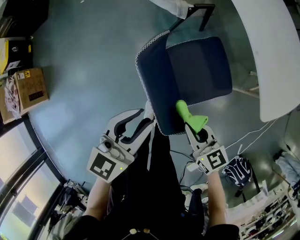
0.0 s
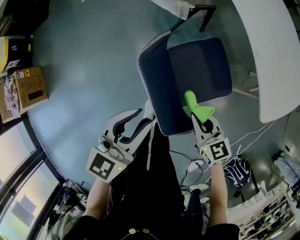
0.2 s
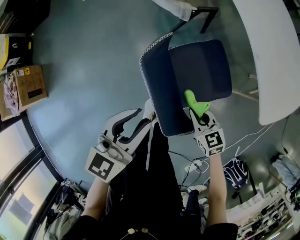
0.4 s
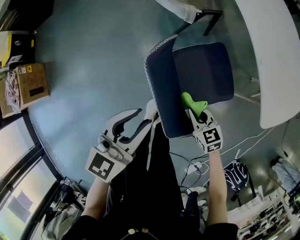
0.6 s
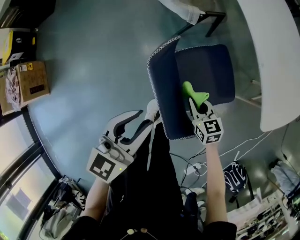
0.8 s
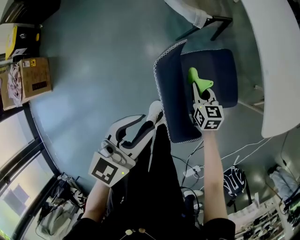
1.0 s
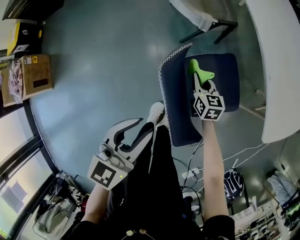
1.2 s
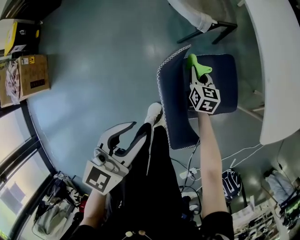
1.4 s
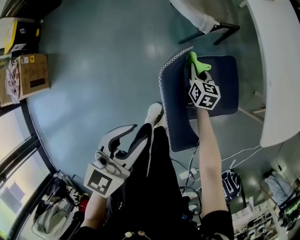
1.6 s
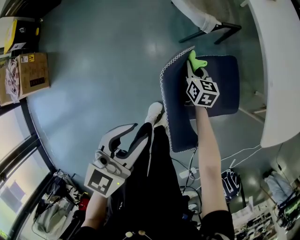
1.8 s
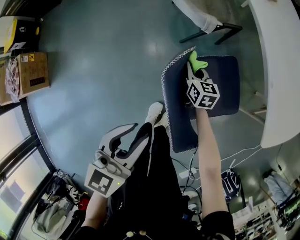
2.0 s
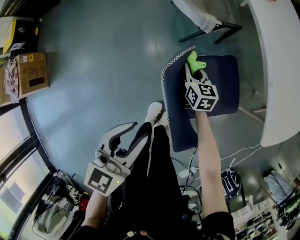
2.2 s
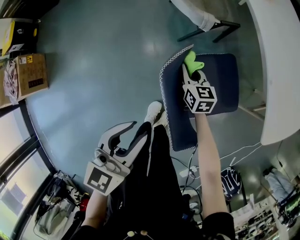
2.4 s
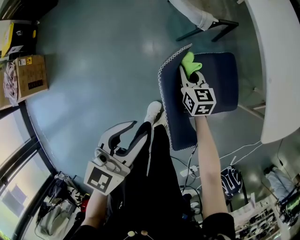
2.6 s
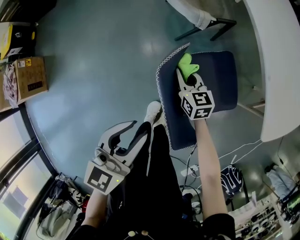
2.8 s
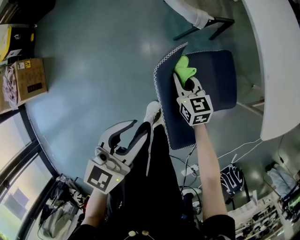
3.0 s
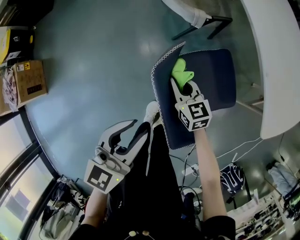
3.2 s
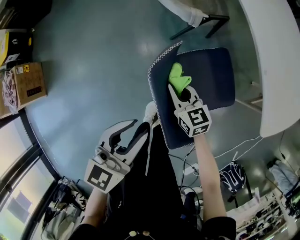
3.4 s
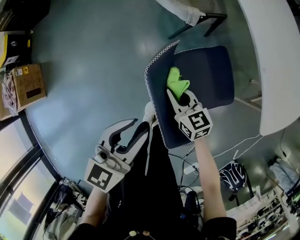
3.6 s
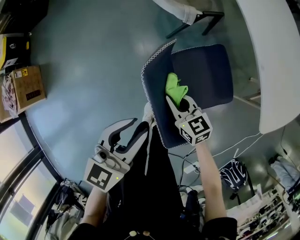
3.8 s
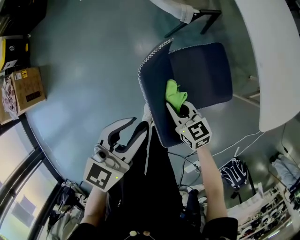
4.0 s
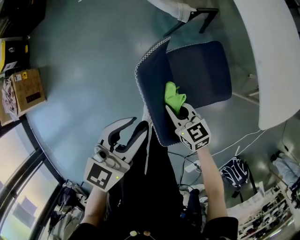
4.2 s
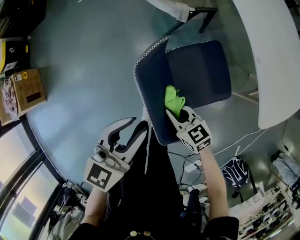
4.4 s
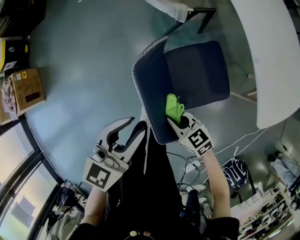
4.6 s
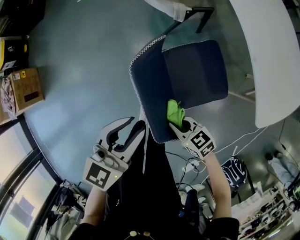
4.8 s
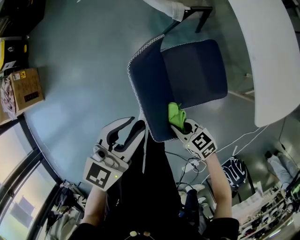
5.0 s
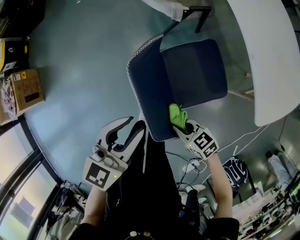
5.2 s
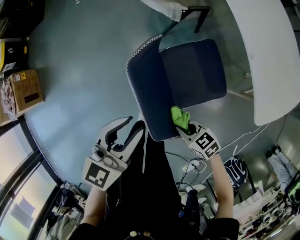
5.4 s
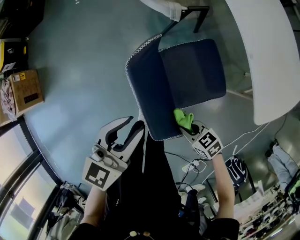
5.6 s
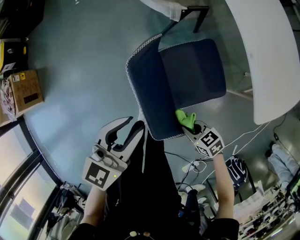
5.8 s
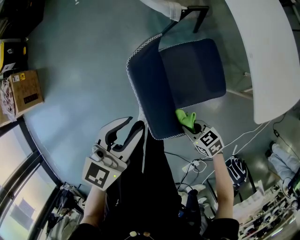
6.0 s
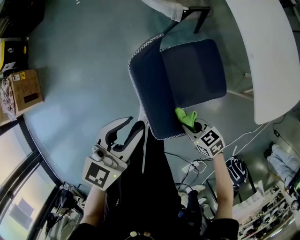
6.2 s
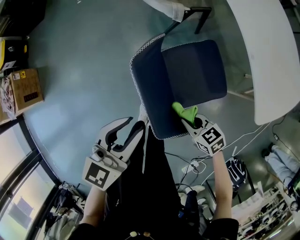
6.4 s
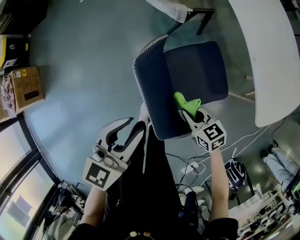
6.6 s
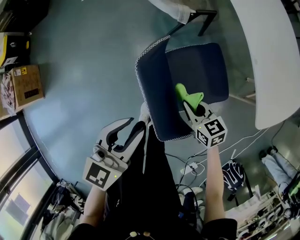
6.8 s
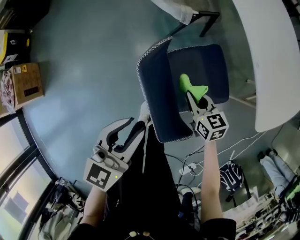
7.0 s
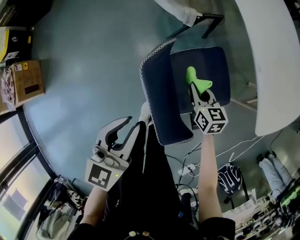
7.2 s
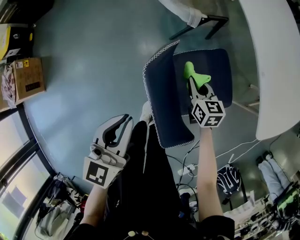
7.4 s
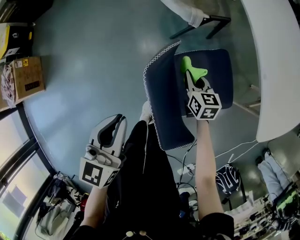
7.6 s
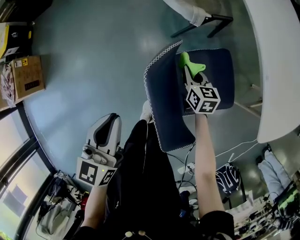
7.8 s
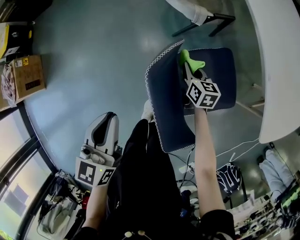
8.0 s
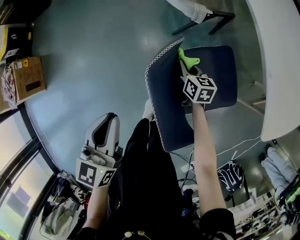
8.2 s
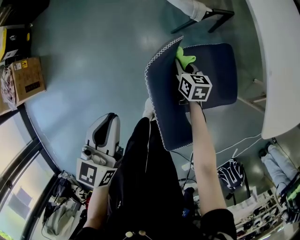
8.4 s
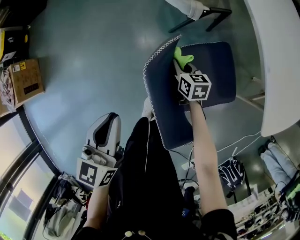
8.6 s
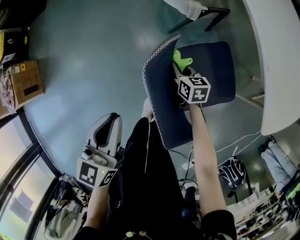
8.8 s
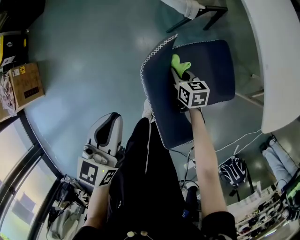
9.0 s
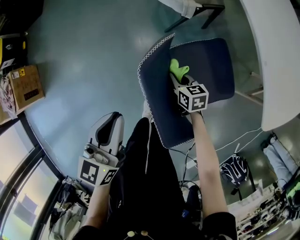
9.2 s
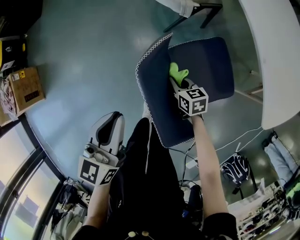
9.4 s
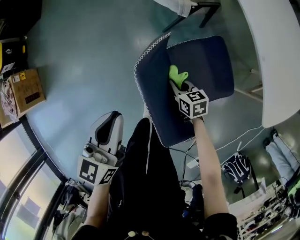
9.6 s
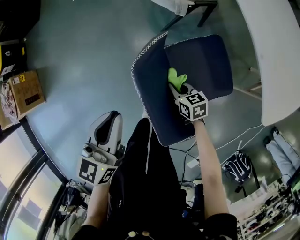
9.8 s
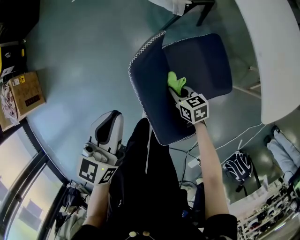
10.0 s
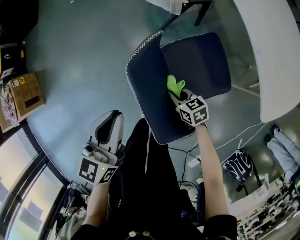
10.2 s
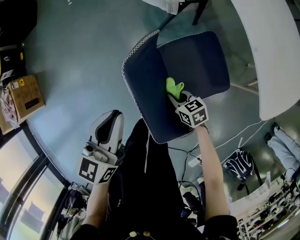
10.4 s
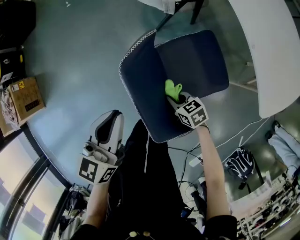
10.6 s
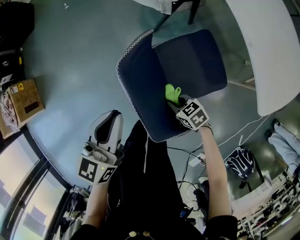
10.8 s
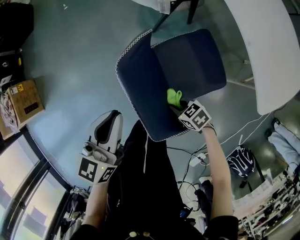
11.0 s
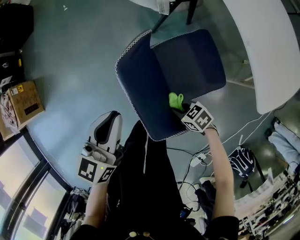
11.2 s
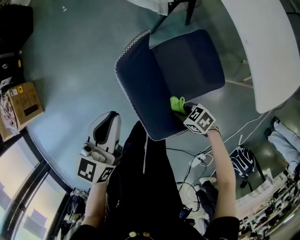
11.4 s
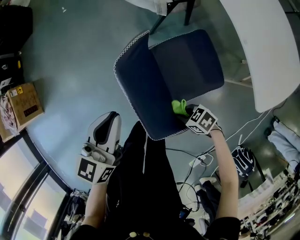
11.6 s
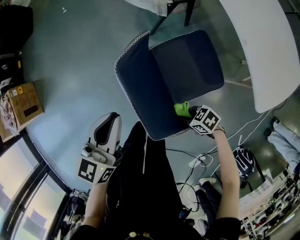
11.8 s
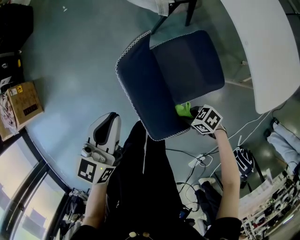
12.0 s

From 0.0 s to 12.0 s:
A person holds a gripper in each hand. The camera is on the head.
From 0.0 s to 1.6 s: The left gripper shifts approximately 5 cm to the left; the right gripper moves forward and downward, approximately 30 cm, and changes its angle by roughly 20 degrees.
From 1.6 s to 3.0 s: The right gripper shifts some 10 cm backward, to the left and upward.
From 3.0 s to 4.4 s: The right gripper heads backward, covering about 15 cm.
From 4.4 s to 6.0 s: The right gripper travels backward and to the right by roughly 15 cm, and rotates some 20 degrees.
From 6.0 s to 7.6 s: The left gripper travels to the left by some 5 cm, changes its angle by roughly 20 degrees, and closes. The right gripper travels forward by some 25 cm, and changes its angle by some 40 degrees.
From 7.6 s to 9.0 s: The right gripper travels to the left and downward by roughly 10 cm.
From 9.0 s to 10.4 s: The right gripper goes approximately 15 cm backward.
From 10.4 s to 12.0 s: The right gripper ends up approximately 15 cm from where it was, and turns by some 30 degrees.

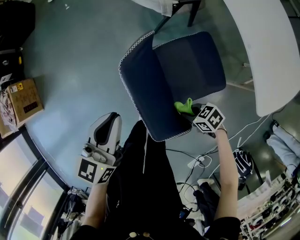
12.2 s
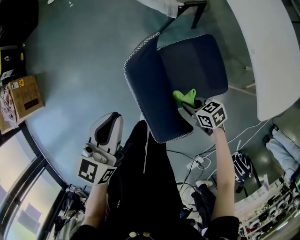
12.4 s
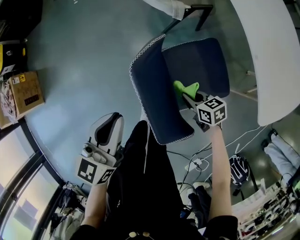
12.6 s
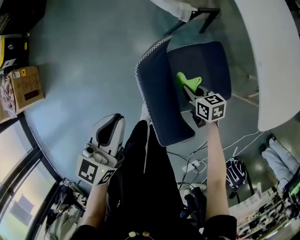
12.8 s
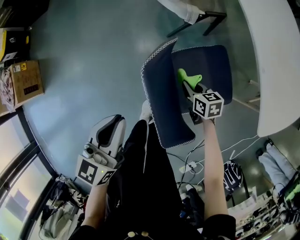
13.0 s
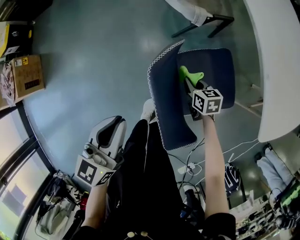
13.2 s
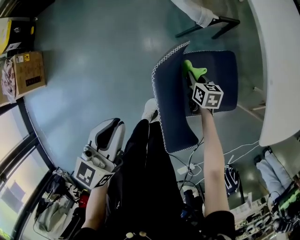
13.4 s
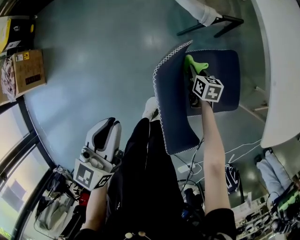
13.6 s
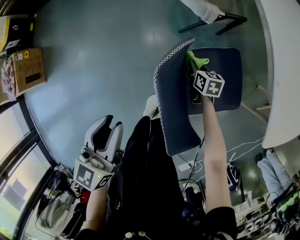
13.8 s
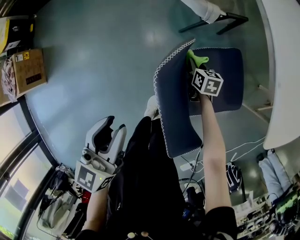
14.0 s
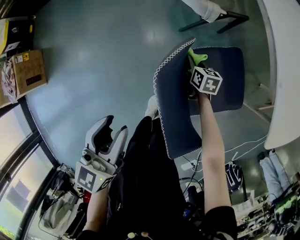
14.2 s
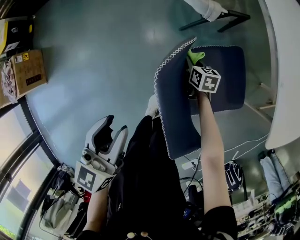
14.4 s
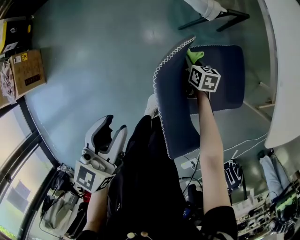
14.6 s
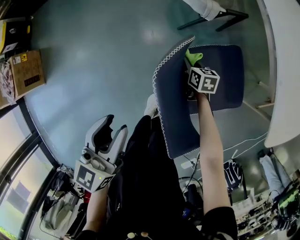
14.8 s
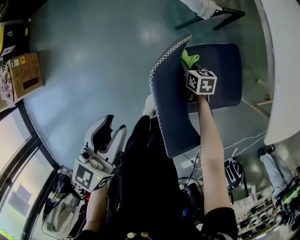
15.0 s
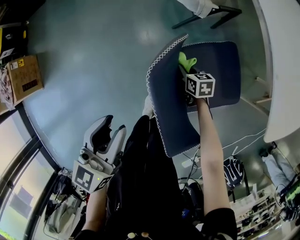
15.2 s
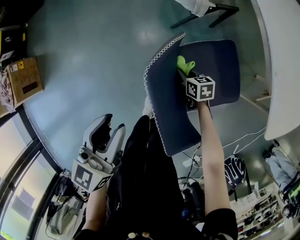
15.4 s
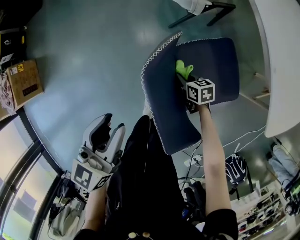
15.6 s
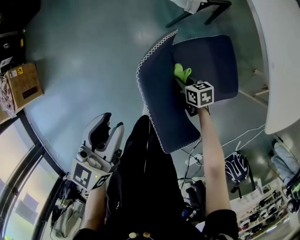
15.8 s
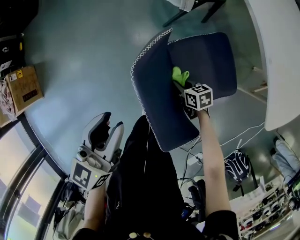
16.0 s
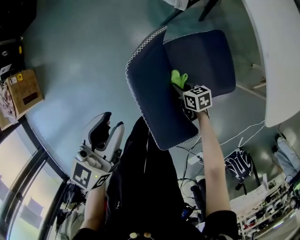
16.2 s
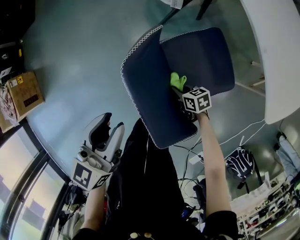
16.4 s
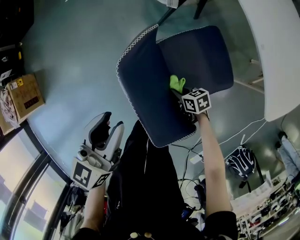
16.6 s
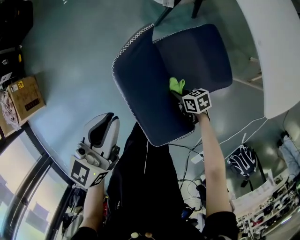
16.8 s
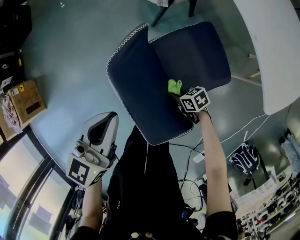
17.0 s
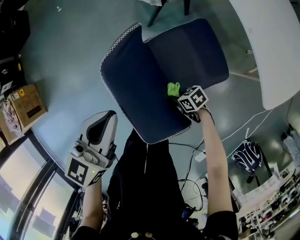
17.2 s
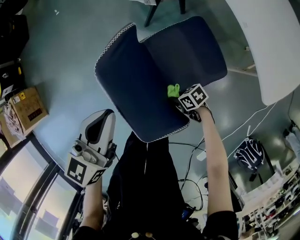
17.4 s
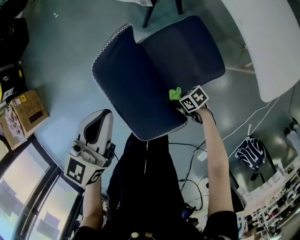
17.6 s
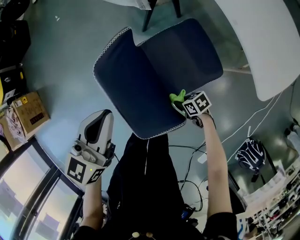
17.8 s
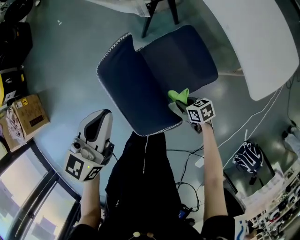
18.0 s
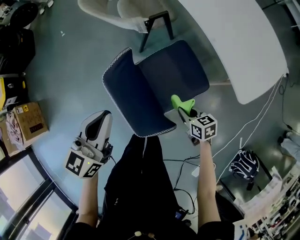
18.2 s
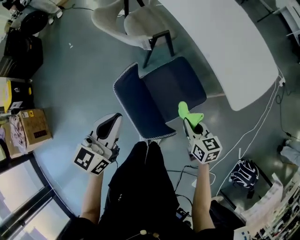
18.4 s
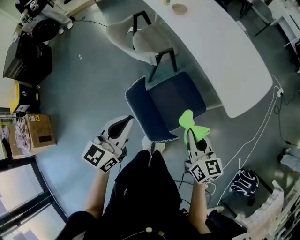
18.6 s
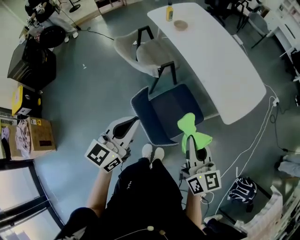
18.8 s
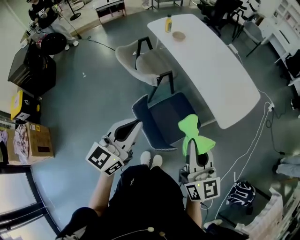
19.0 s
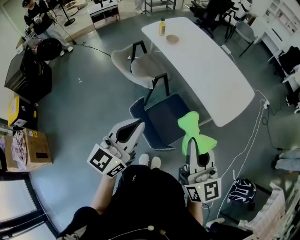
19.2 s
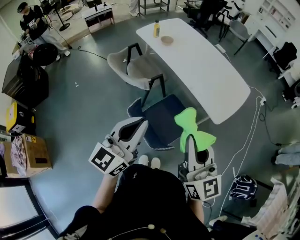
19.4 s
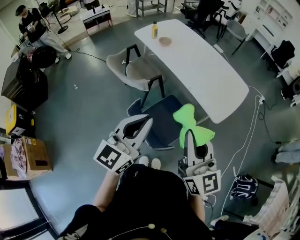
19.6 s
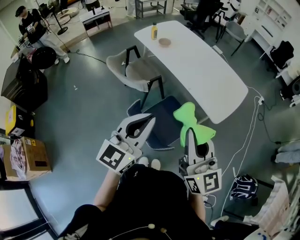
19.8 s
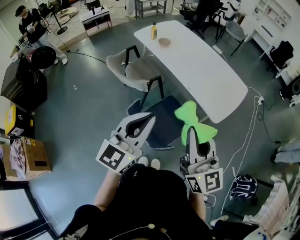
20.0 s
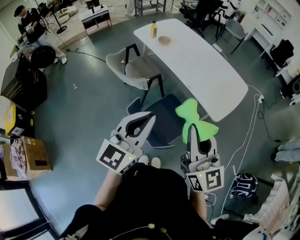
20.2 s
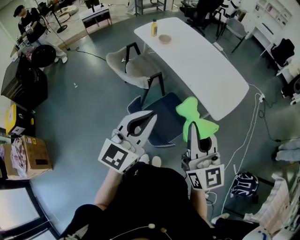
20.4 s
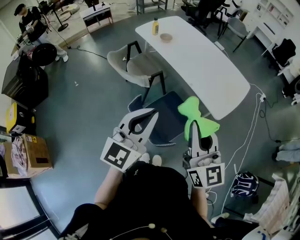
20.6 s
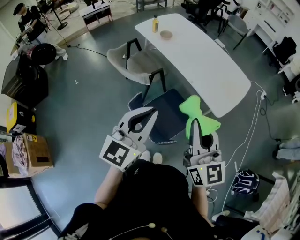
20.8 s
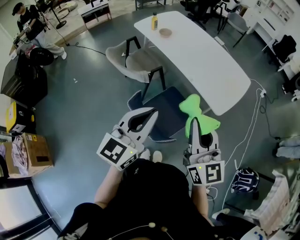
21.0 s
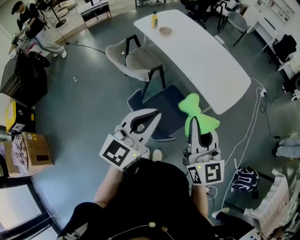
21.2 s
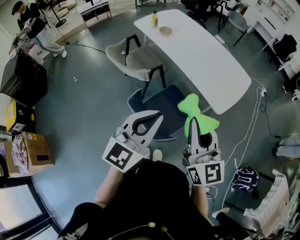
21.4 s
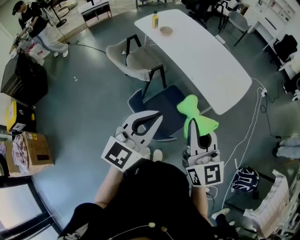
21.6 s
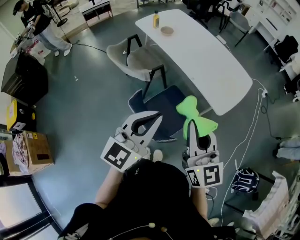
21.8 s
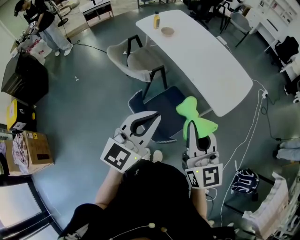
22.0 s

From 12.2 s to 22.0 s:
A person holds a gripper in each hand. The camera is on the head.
From 12.2 s to 13.6 s: The right gripper shifts by about 30 cm, and turns by about 50 degrees. Meanwhile the left gripper shifts by roughly 5 cm.
From 13.6 s to 15.0 s: The left gripper opens up.
From 15.0 s to 16.4 s: The left gripper shifts by about 5 cm. The right gripper goes approximately 15 cm backward.
From 16.4 s to 17.8 s: The right gripper ends up about 15 cm from where it was. Meanwhile the left gripper changes place by roughly 5 cm, and closes.
From 17.8 s to 19.2 s: The right gripper travels upward by some 60 cm, and points its fingers some 50 degrees further upward. The left gripper travels upward by about 25 cm, and rotates some 30 degrees.
From 19.2 s to 20.6 s: The left gripper changes place by about 5 cm.
From 20.6 s to 22.0 s: The grippers stay close to where they were, moving slightly.

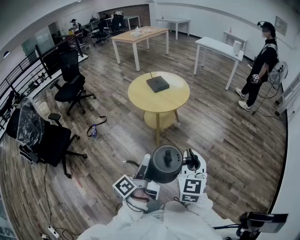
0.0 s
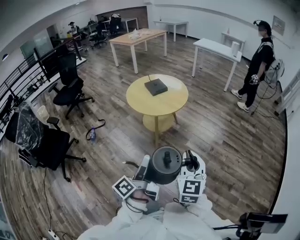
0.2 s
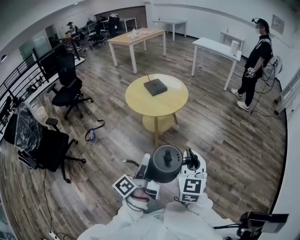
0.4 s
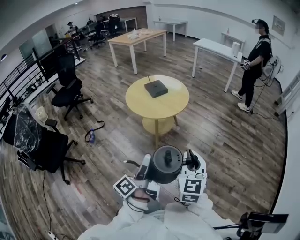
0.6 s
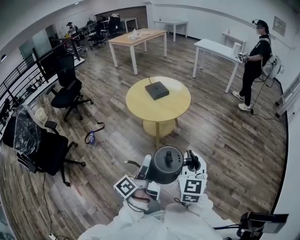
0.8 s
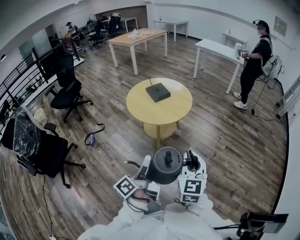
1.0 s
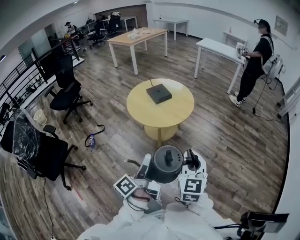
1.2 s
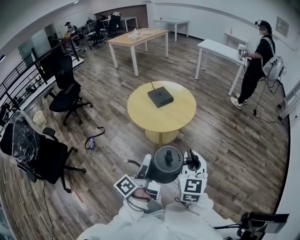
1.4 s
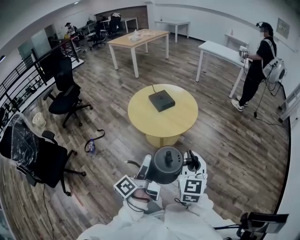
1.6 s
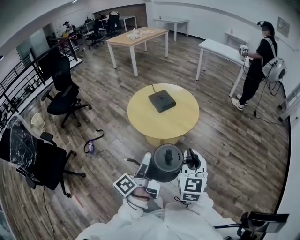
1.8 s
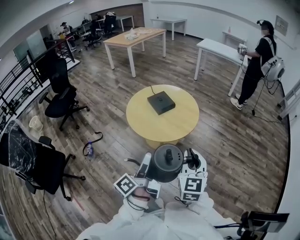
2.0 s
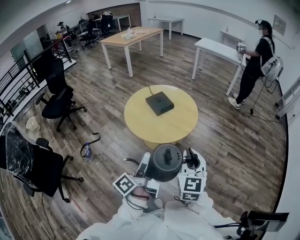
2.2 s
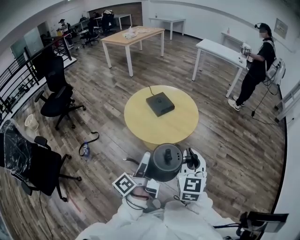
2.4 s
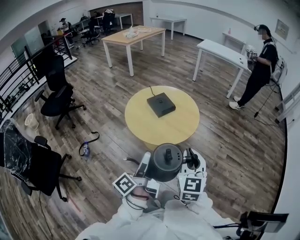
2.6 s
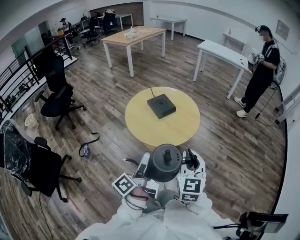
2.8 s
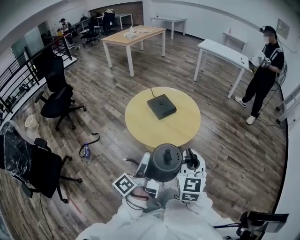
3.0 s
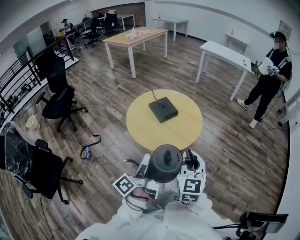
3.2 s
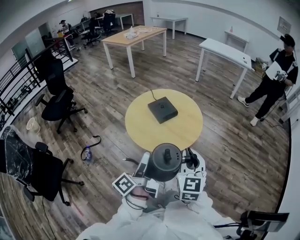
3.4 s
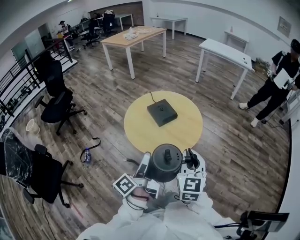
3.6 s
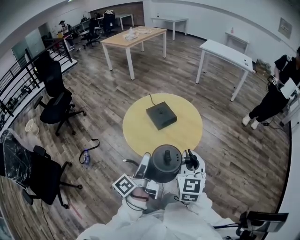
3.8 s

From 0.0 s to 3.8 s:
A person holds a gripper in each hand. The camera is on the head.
From 0.0 s to 1.2 s: The two grippers go roughly 15 cm forward.
From 1.2 s to 2.6 s: The grippers both shift forward and to the left by approximately 20 cm.
From 2.6 s to 3.8 s: The two grippers go about 10 cm forward.
